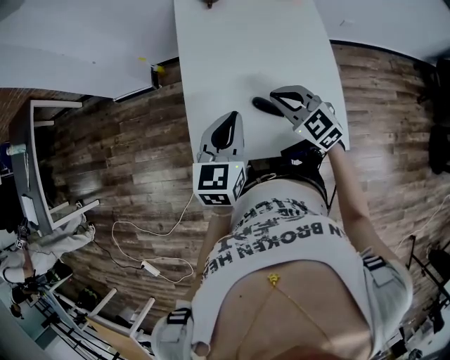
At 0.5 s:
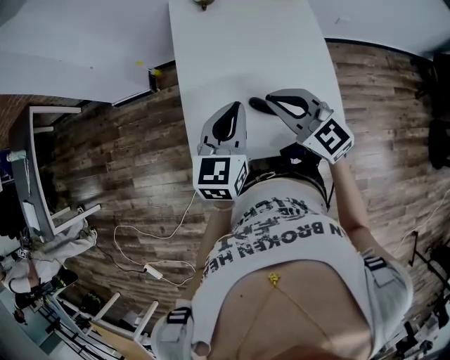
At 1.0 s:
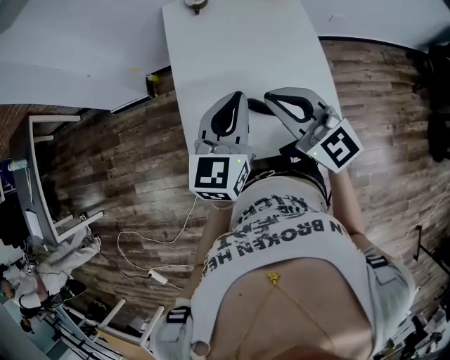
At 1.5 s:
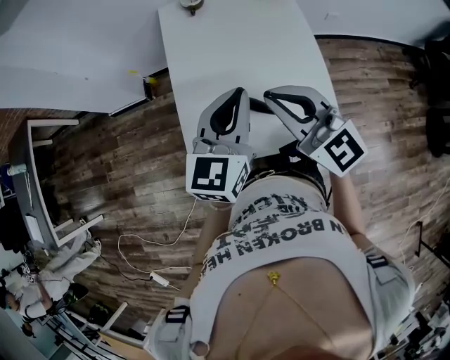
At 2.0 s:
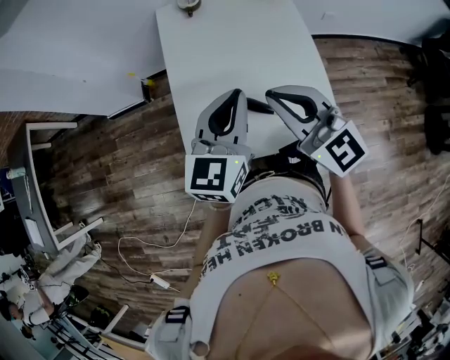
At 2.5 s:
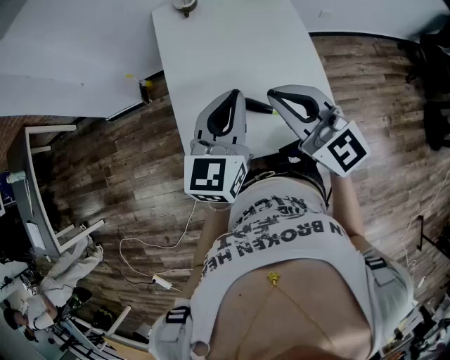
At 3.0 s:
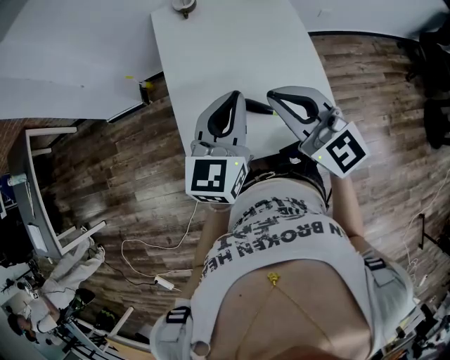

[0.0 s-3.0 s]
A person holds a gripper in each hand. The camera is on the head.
0.0 to 1.5 s: The right gripper shifts some 15 cm upward, and swivels about 30 degrees. Meanwhile the left gripper goes some 10 cm upward and to the right.
1.5 to 3.0 s: The grippers stay close to where they were, moving slightly.

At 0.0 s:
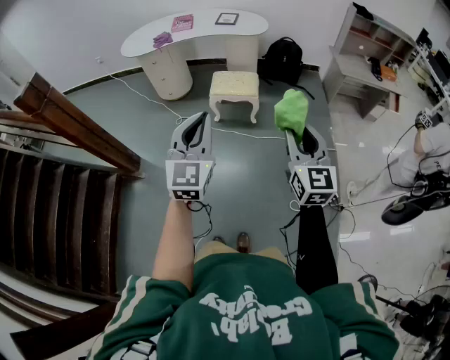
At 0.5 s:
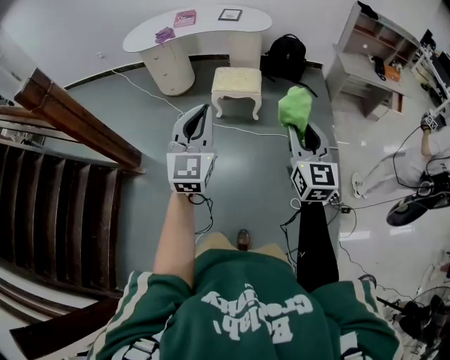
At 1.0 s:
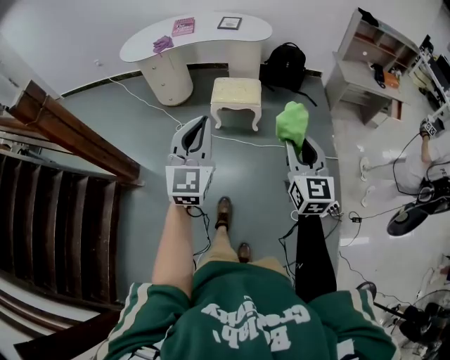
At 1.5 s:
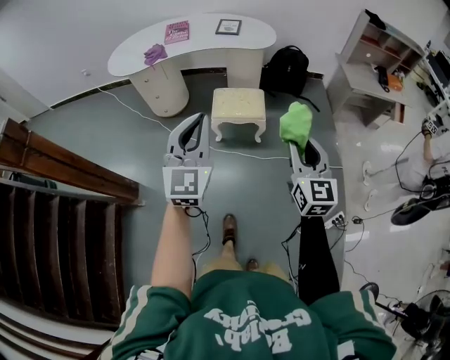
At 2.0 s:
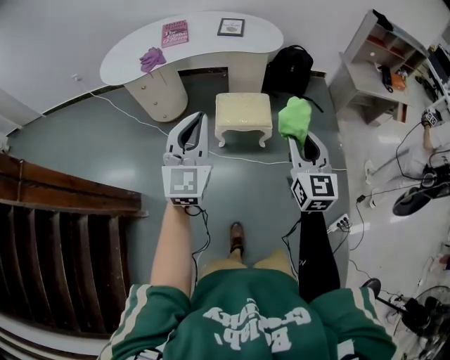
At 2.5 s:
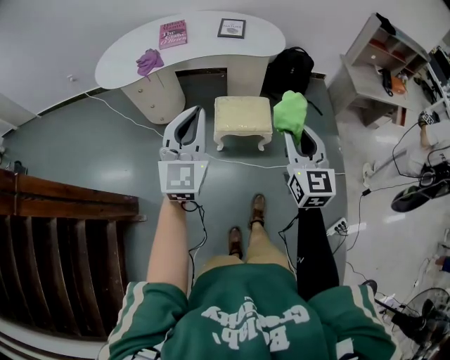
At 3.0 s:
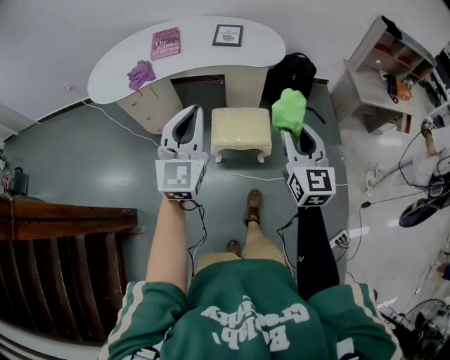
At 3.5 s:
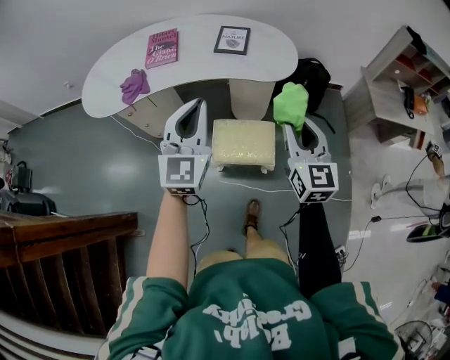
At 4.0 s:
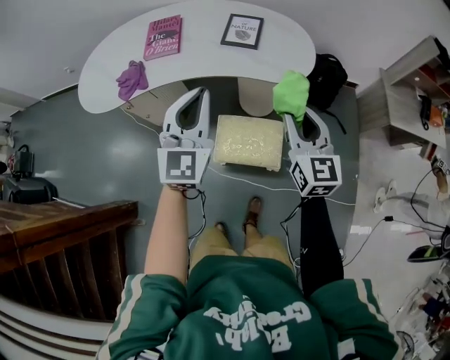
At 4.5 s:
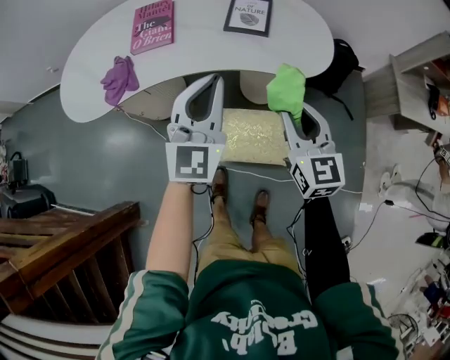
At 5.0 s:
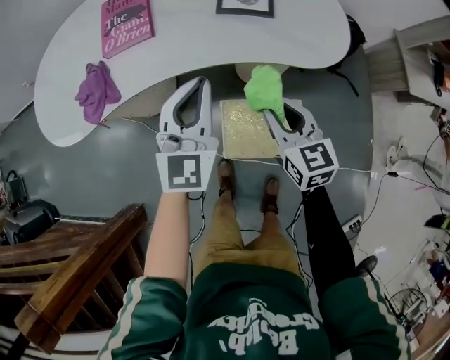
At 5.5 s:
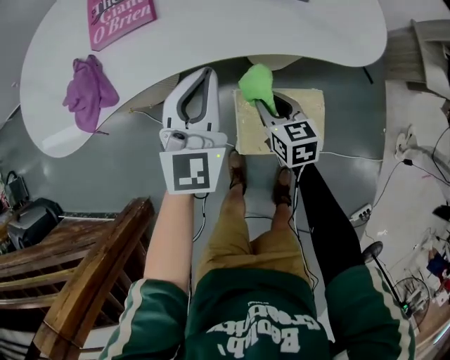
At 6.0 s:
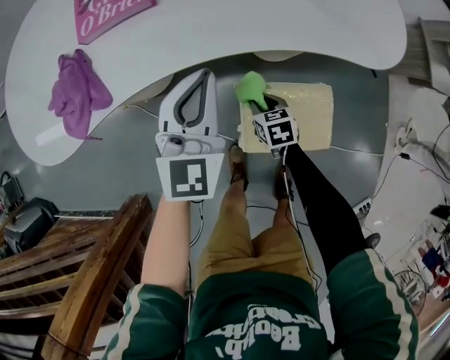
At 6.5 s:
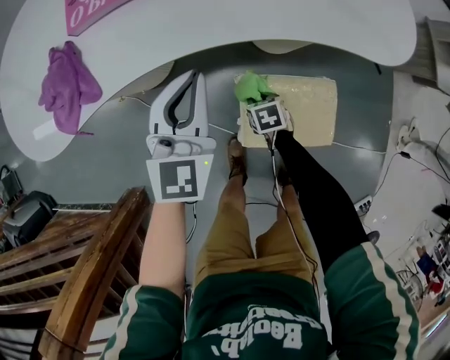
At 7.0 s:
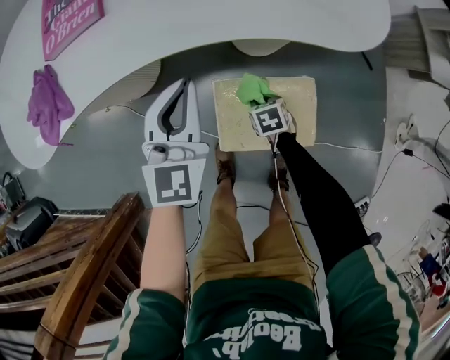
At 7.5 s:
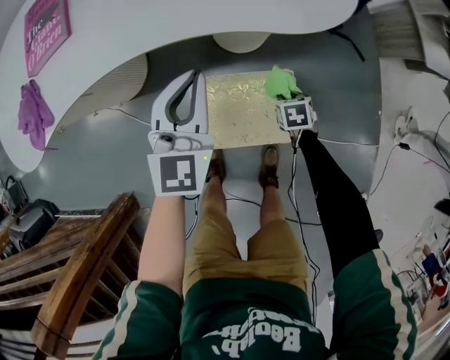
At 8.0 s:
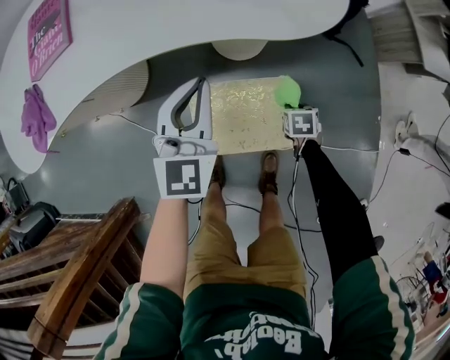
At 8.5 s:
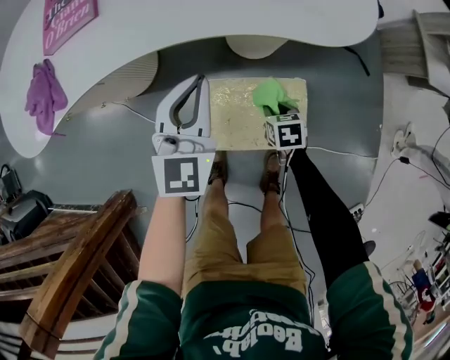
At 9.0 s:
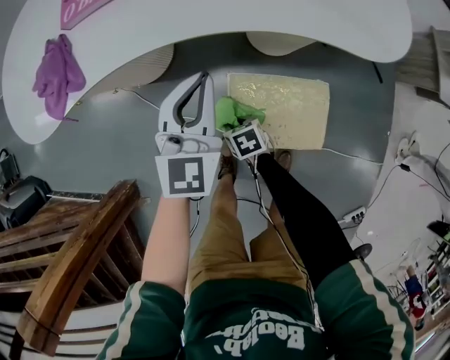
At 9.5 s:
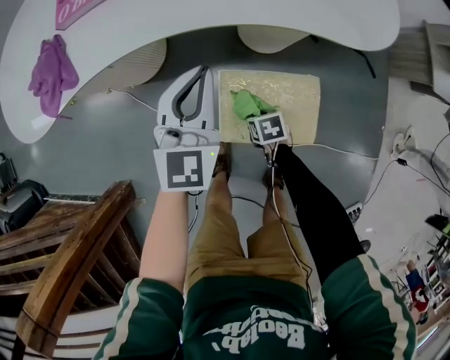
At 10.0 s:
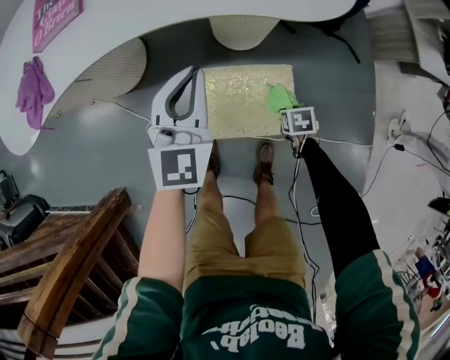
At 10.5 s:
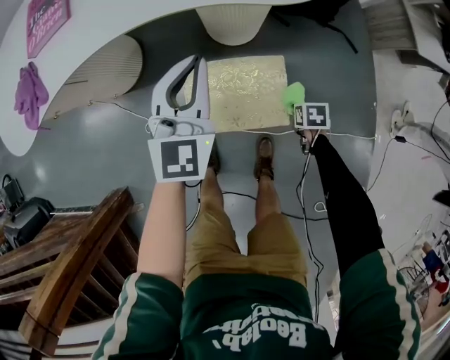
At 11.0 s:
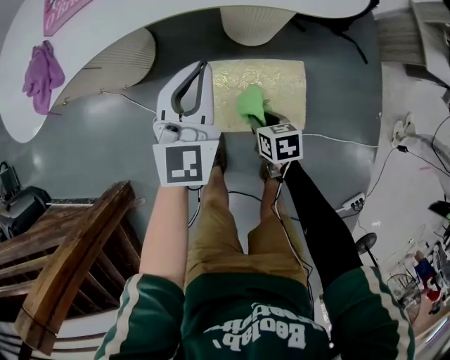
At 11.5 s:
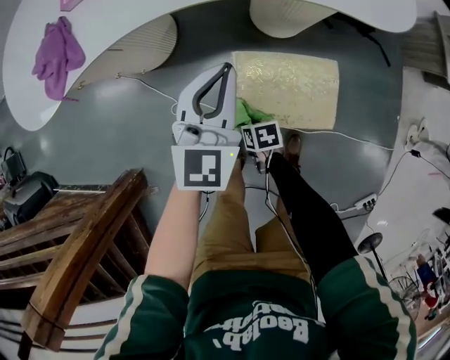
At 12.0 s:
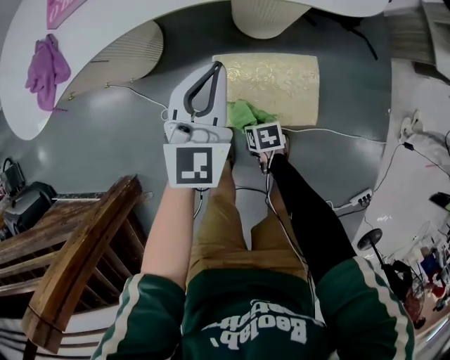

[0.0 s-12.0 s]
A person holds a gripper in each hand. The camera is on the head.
0.0 to 2.0 s: Both grippers move forward, roughly 35 cm.
2.0 to 4.0 s: Both grippers move forward, some 40 cm.
4.0 to 6.0 s: The left gripper heads downward and forward, covering roughly 35 cm. The right gripper moves downward and to the left, about 50 cm, and tips its fingers downward by about 50 degrees.
6.0 to 8.0 s: The left gripper changes place by roughly 20 cm. The right gripper changes place by approximately 30 cm, and swivels about 20 degrees.
10.0 to 12.0 s: The right gripper moves about 5 cm upward and comes back.

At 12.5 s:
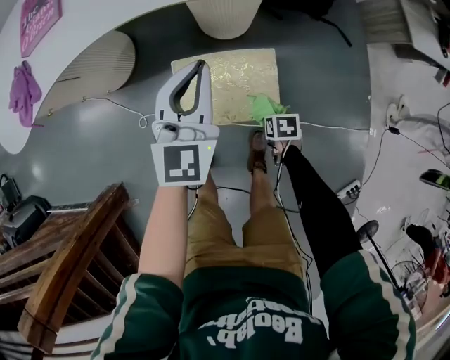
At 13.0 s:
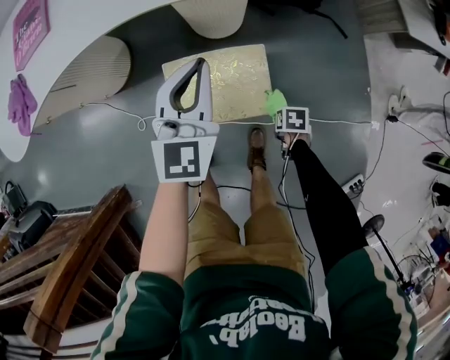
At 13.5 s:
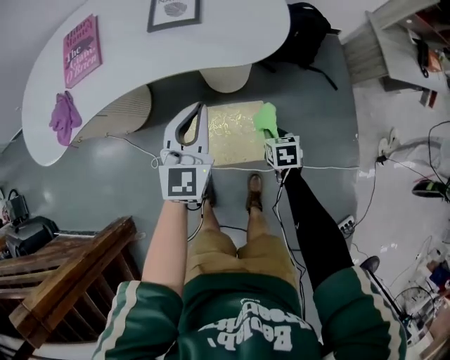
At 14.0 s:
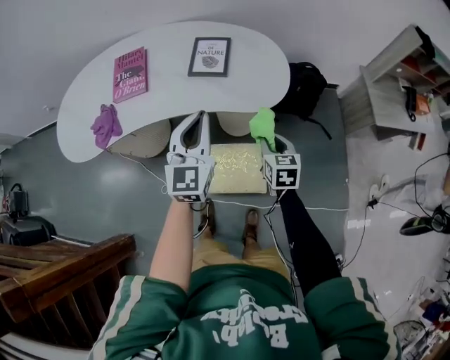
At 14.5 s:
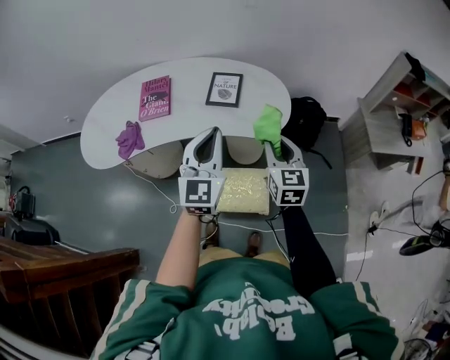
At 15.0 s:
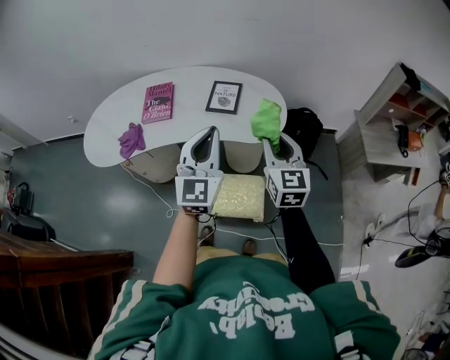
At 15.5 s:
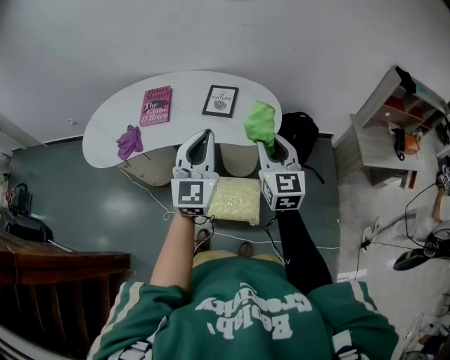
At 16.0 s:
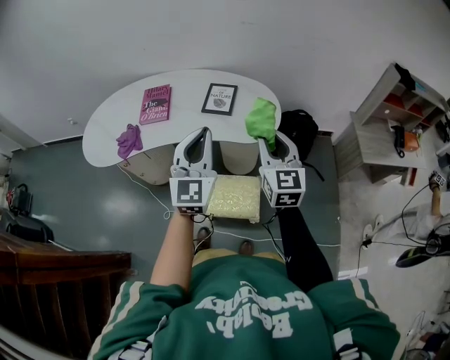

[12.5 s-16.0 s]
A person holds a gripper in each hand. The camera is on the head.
12.5 to 14.5 s: The right gripper is displaced upward by approximately 60 cm, and tips its fingers upward by approximately 60 degrees, while the left gripper shifts some 30 cm upward.
14.5 to 16.0 s: The left gripper moves approximately 5 cm. The right gripper is displaced upward by approximately 10 cm.

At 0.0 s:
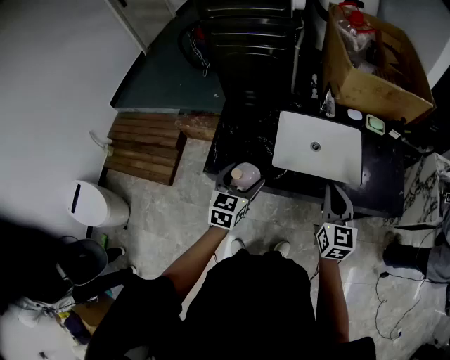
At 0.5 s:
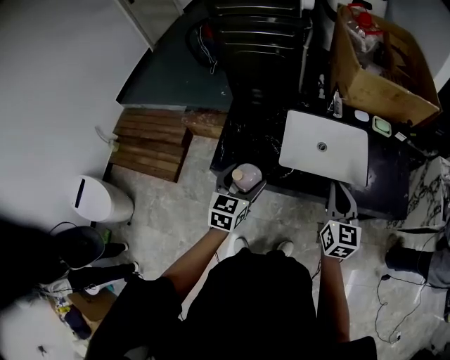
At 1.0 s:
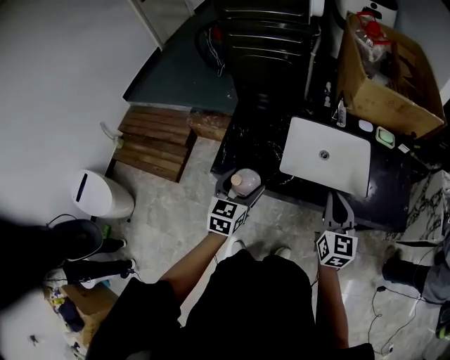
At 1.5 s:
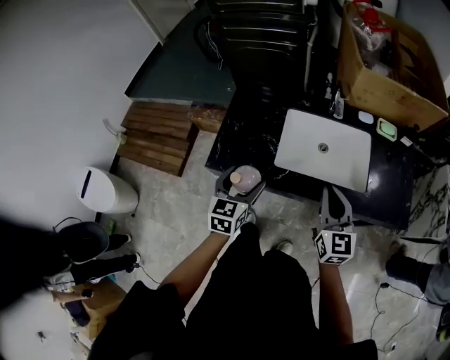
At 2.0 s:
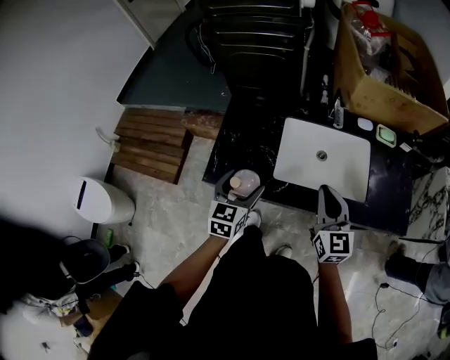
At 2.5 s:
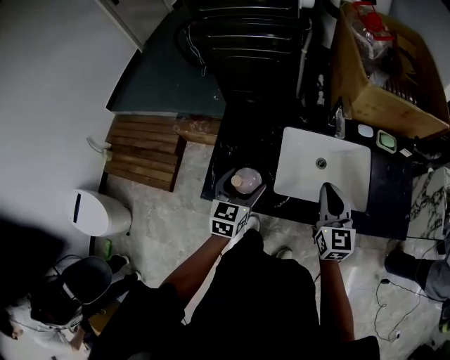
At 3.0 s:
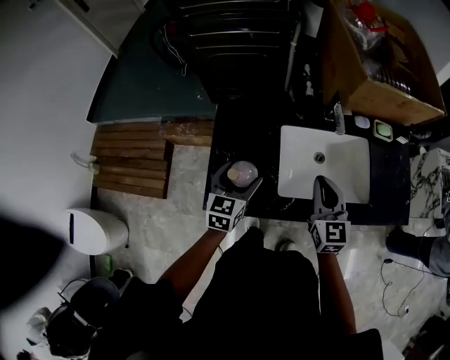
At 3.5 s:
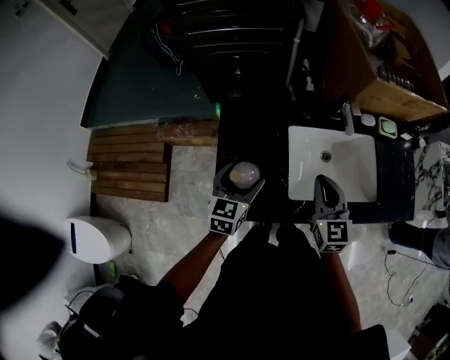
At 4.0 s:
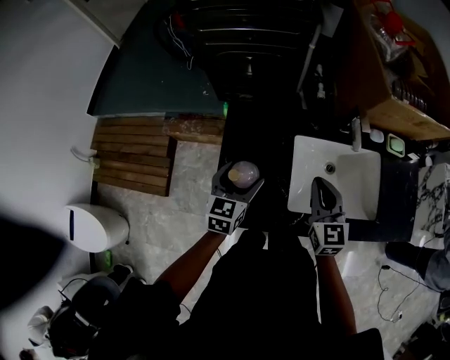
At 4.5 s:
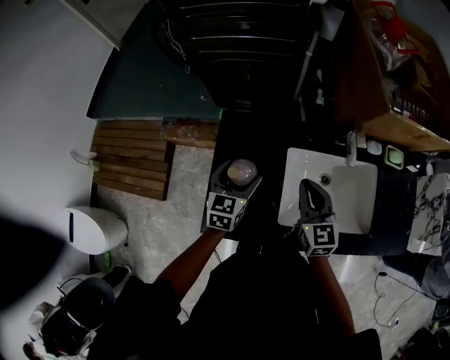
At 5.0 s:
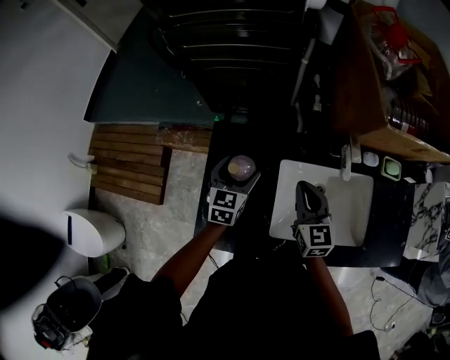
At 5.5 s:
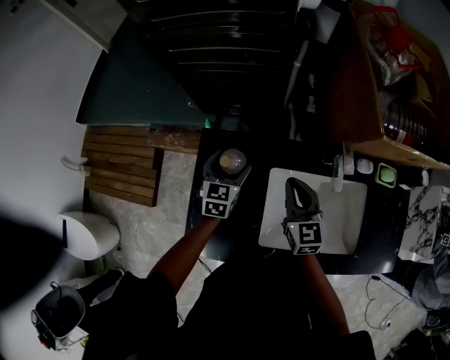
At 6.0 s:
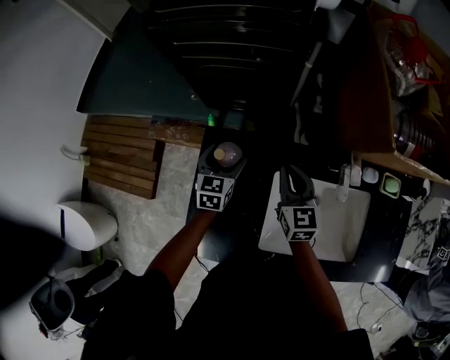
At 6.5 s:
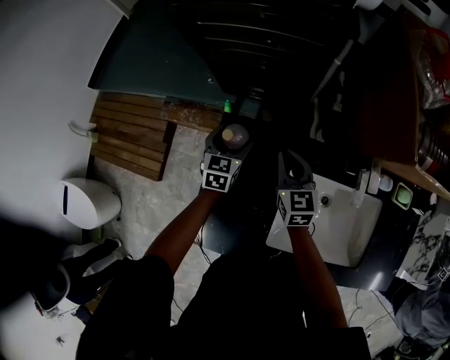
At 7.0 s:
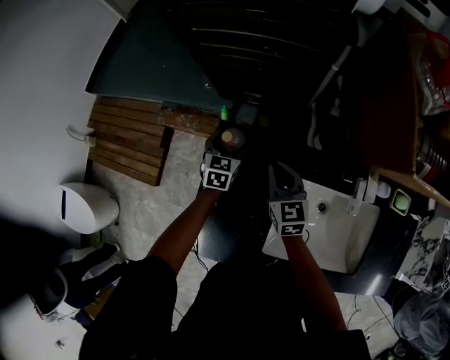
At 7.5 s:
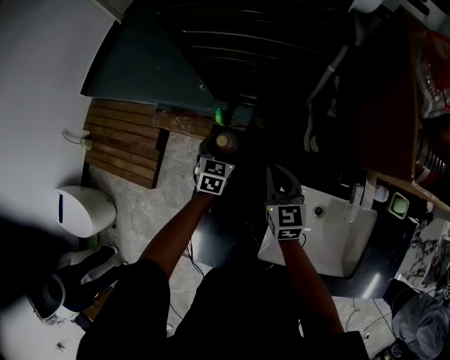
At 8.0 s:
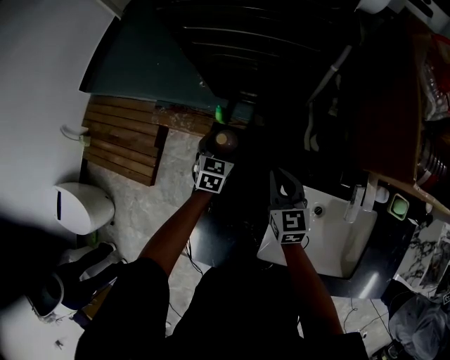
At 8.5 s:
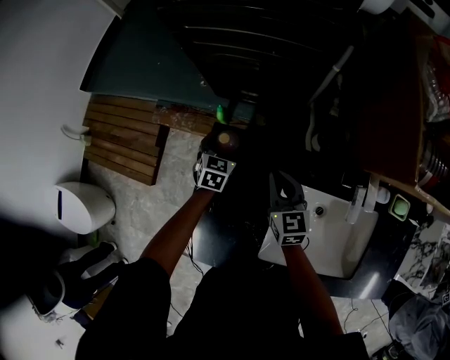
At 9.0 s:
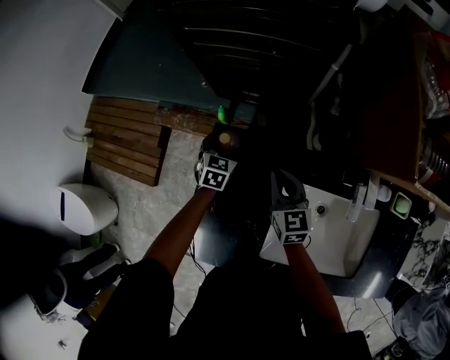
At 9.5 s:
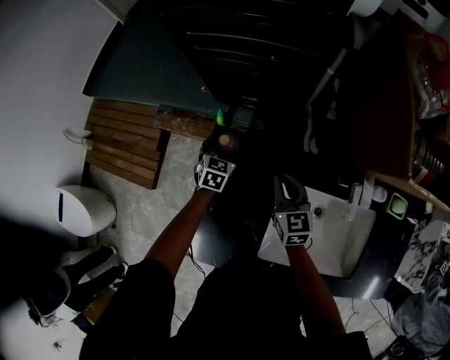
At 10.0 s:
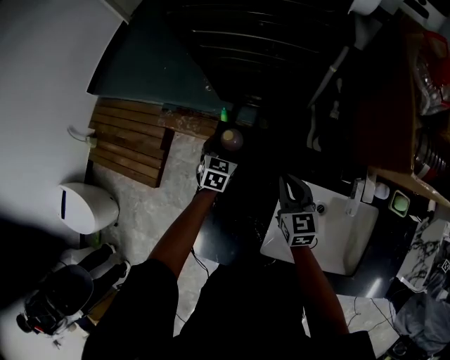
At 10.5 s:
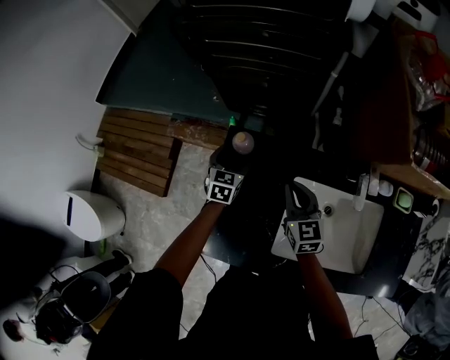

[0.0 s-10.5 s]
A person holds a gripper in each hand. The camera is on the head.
0.0 to 2.0 s: The right gripper shifts roughly 5 cm forward.
2.0 to 4.0 s: The two grippers go roughly 20 cm forward and to the left.
4.0 to 6.5 s: The grippers both shift forward by some 25 cm.
6.5 to 8.5 s: The left gripper goes roughly 5 cm downward.
8.5 to 10.5 s: Both grippers travel together backward, approximately 5 cm.
